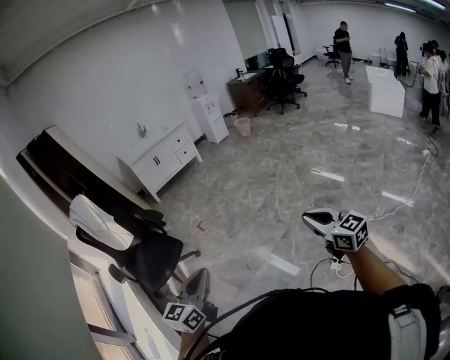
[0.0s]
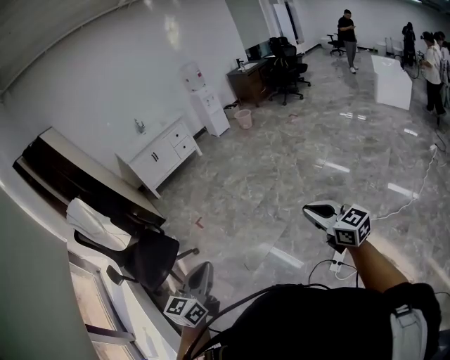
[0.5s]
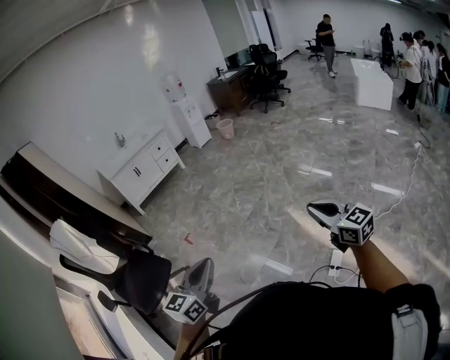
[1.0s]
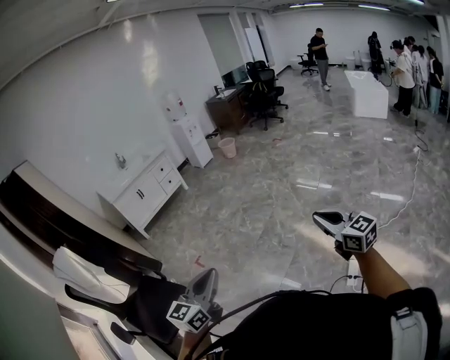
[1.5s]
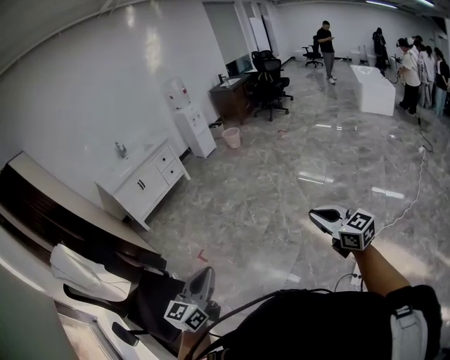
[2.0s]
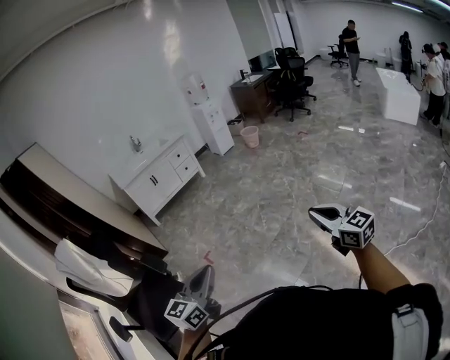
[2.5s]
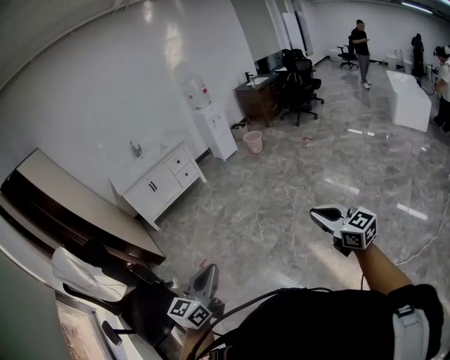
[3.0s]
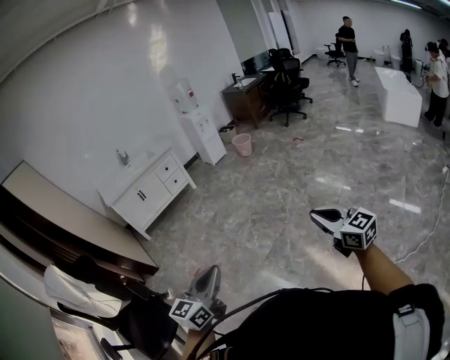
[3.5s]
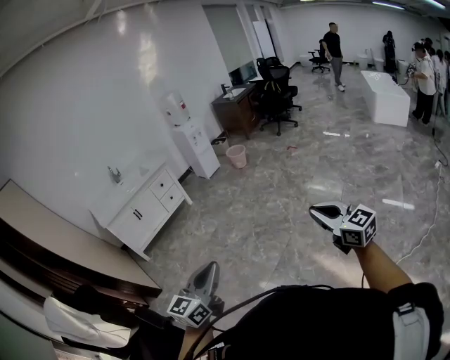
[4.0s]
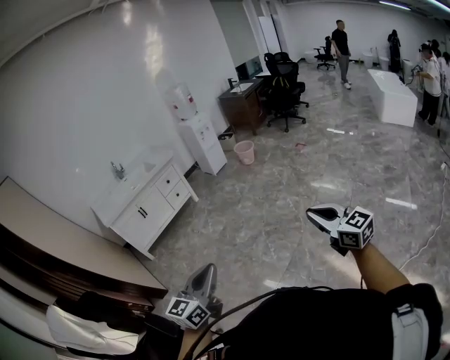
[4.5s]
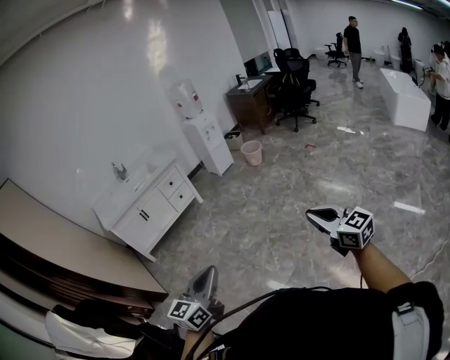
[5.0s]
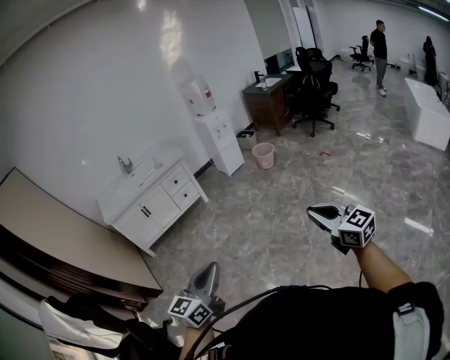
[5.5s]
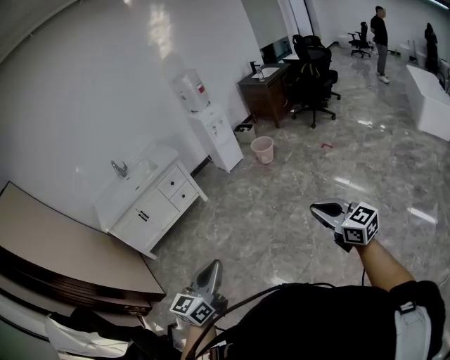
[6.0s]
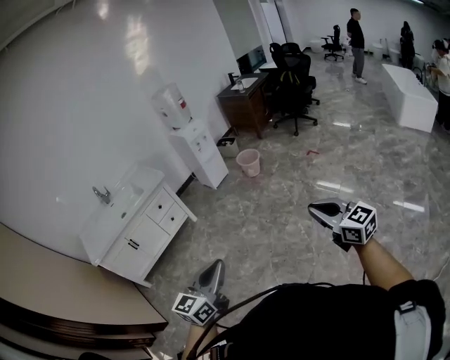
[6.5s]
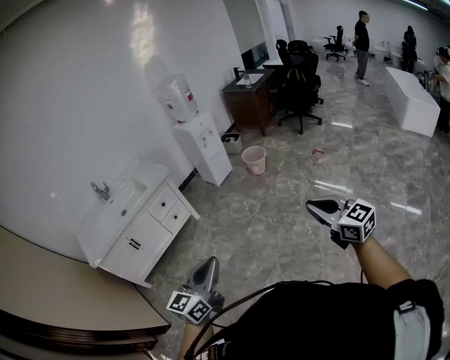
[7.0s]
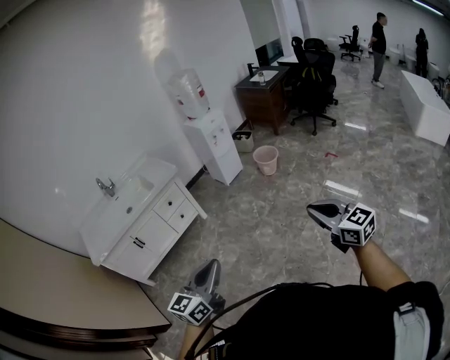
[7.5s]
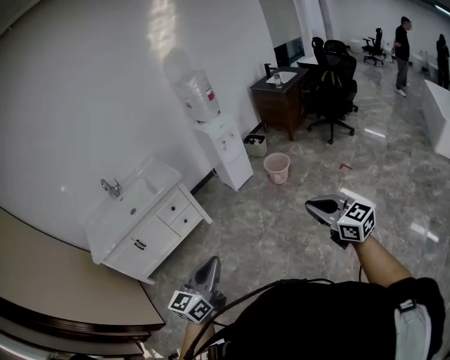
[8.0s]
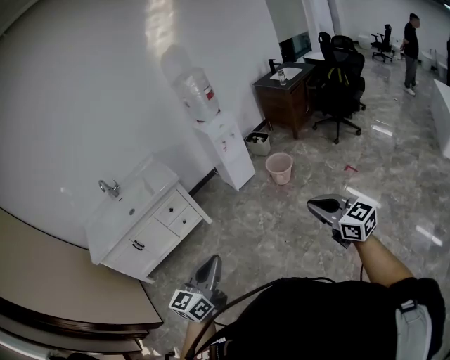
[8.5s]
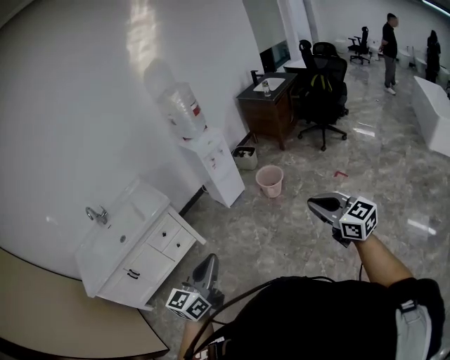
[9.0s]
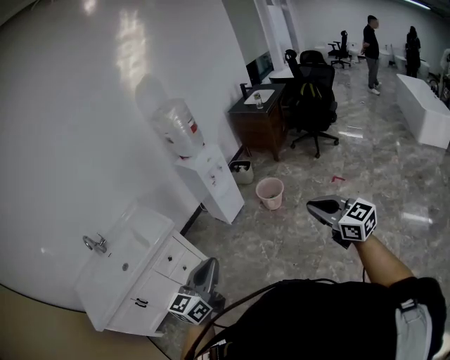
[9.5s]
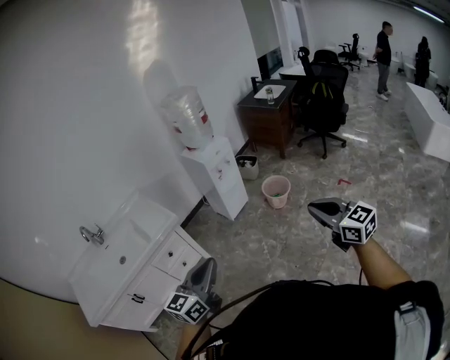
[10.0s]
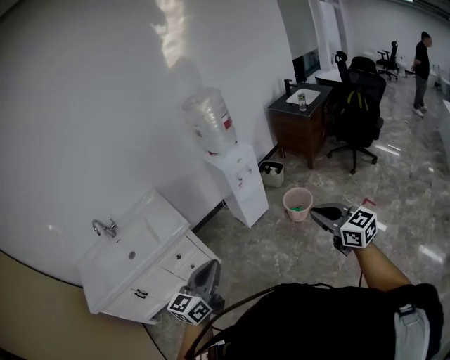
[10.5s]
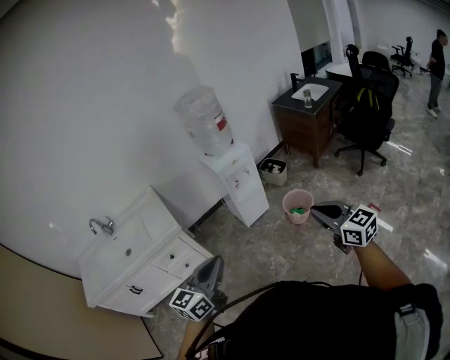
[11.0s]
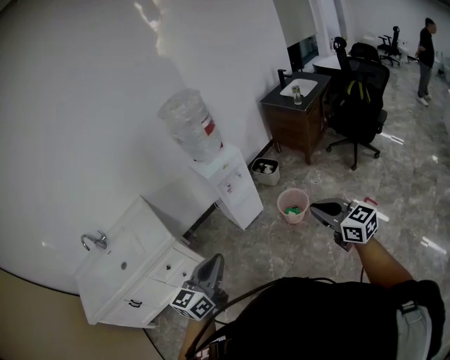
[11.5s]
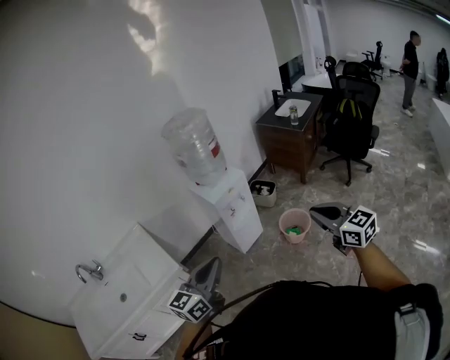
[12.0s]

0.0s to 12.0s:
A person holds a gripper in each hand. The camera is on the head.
0.0s to 2.0s: Both grippers move forward, approximately 35 cm.
2.0s to 4.0s: The grippers both shift forward by about 40 cm.
4.0s to 6.0s: The pair of grippers is taken forward, about 40 cm.
6.0s to 8.0s: The pair of grippers is taken forward, roughly 40 cm.
8.0s to 10.0s: Both grippers move forward, roughly 30 cm.
10.0s to 12.0s: The grippers both shift forward by roughly 35 cm.

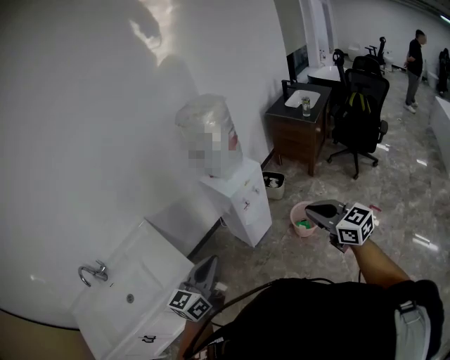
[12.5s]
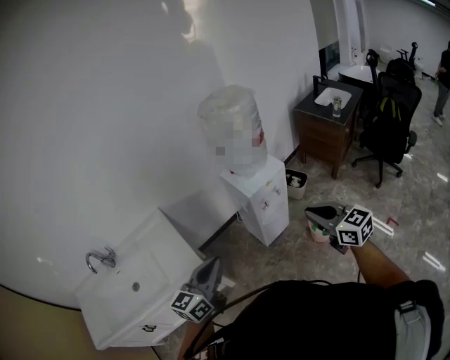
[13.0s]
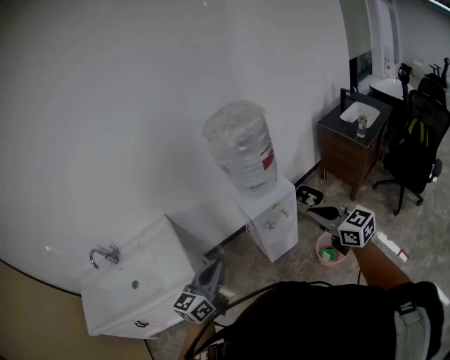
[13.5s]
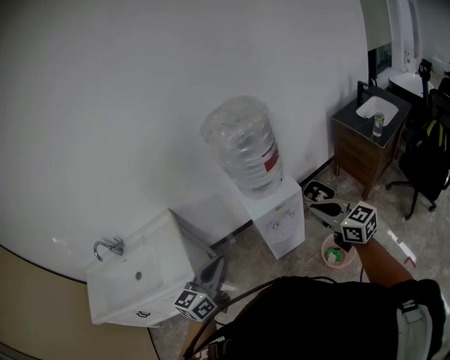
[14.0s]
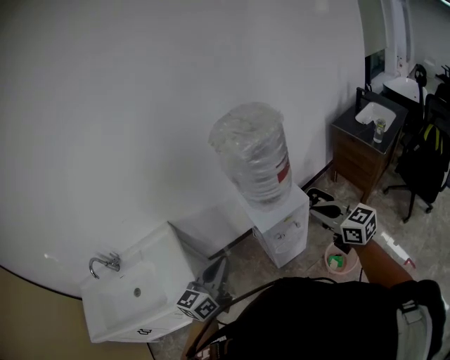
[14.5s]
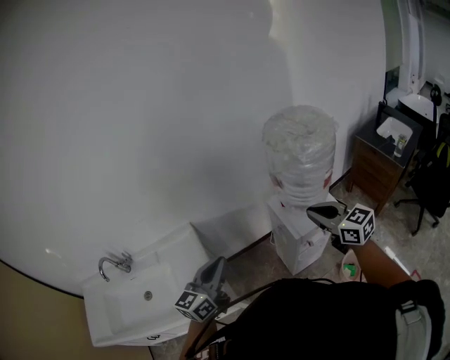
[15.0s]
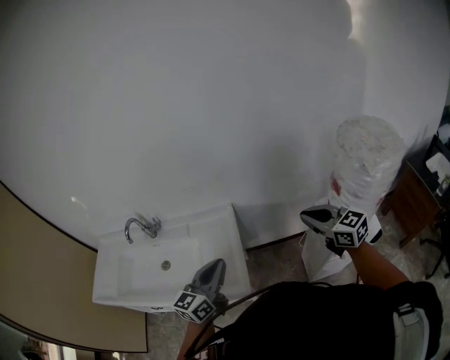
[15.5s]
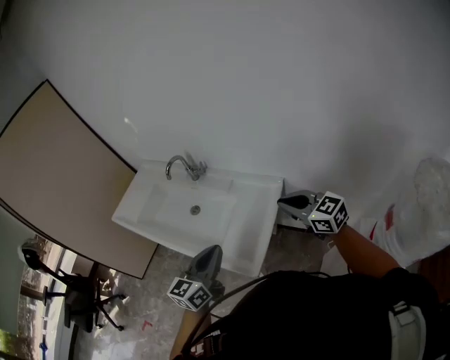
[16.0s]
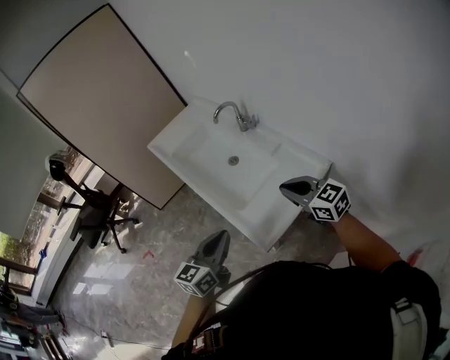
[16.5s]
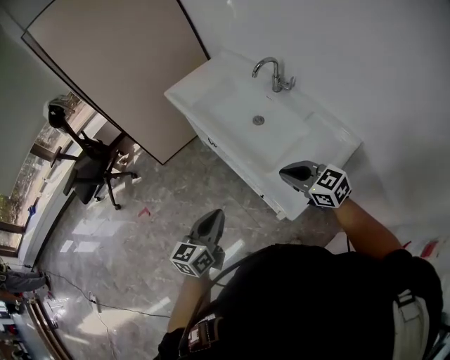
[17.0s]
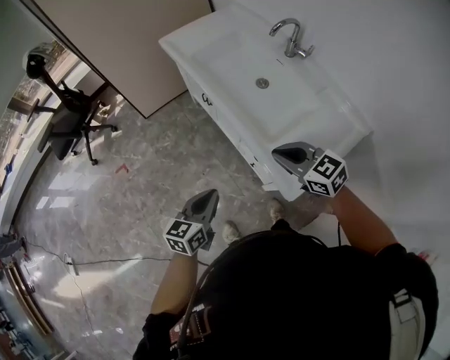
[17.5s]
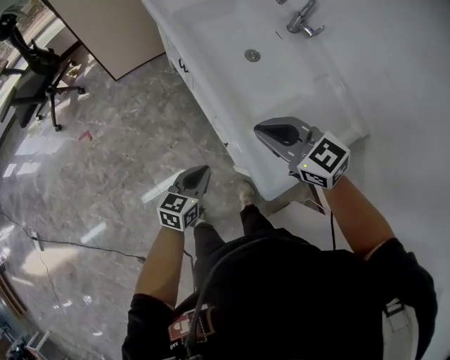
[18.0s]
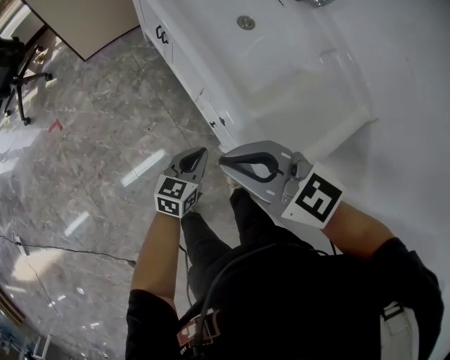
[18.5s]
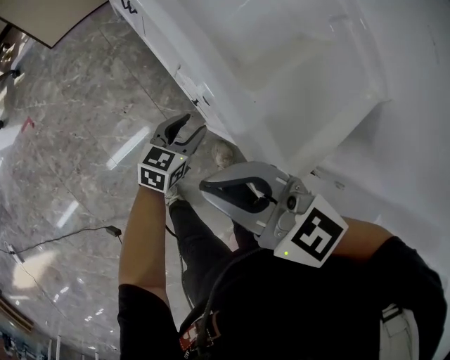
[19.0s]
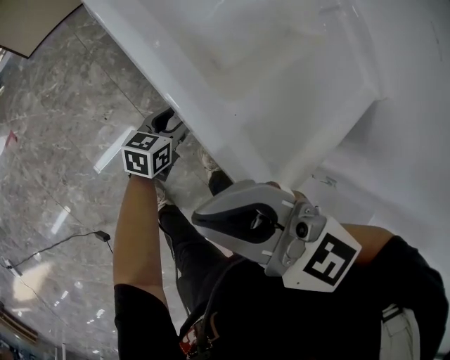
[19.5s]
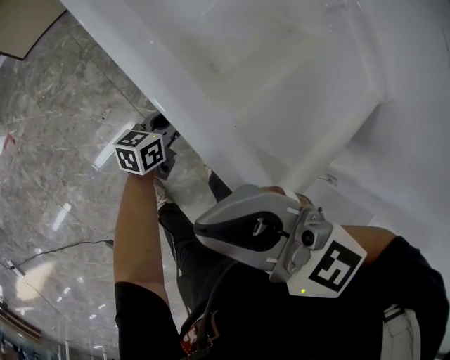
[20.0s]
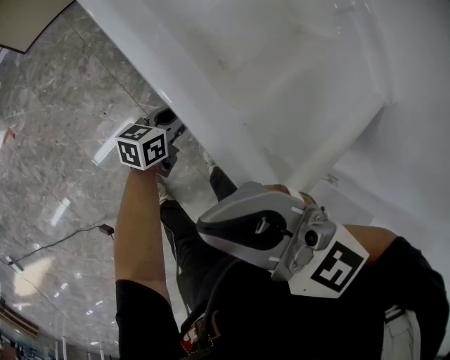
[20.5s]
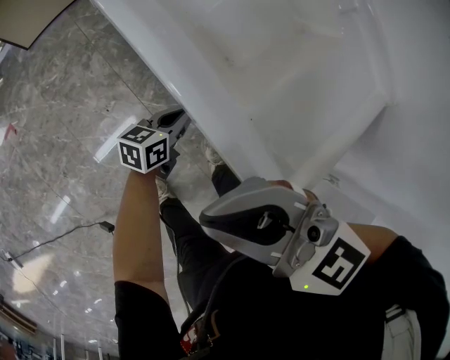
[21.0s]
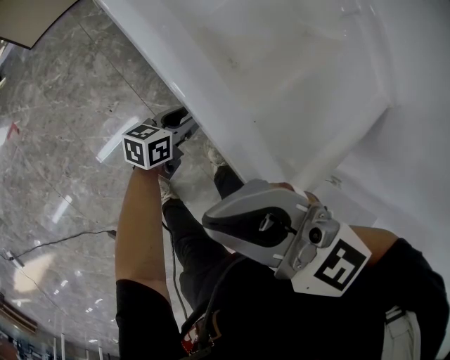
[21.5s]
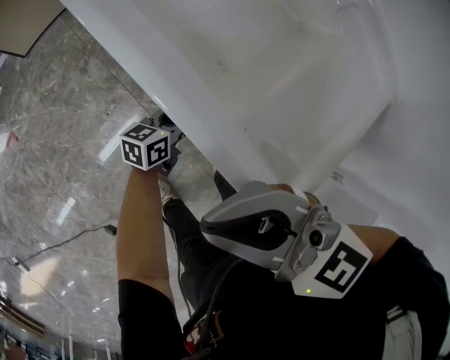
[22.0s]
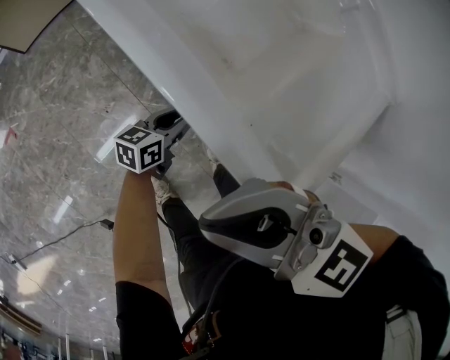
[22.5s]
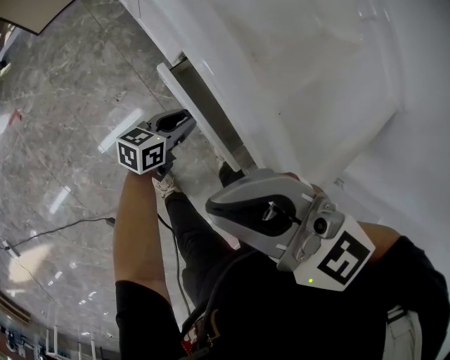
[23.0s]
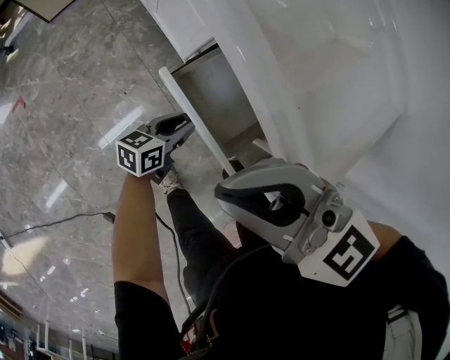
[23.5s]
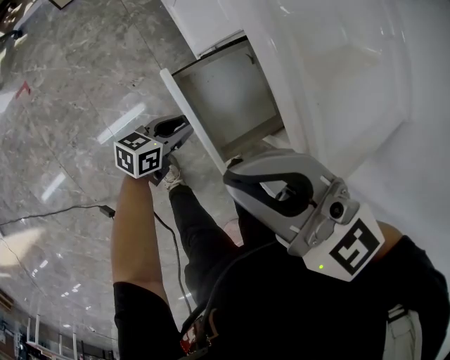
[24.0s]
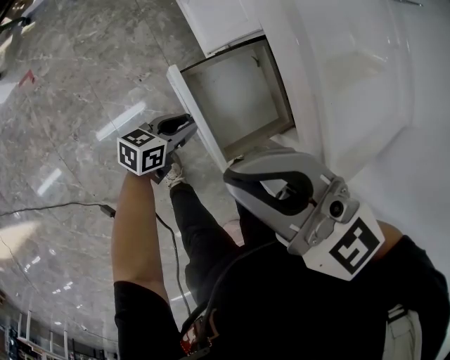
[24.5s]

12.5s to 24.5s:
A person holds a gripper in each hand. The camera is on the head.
12.5s to 14.5s: Both grippers move forward, roughly 30 cm. The right gripper rotates approximately 20 degrees.
14.5s to 16.5s: The left gripper ends up approximately 40 cm from where it was, and changes its angle by roughly 70 degrees. Meanwhile the right gripper shifts by some 70 cm, and turns by about 80 degrees.
16.5s to 18.5s: The right gripper shifts about 35 cm to the left and downward, and rotates some 30 degrees; the left gripper travels downward by roughly 40 cm.
18.5s to 20.5s: The right gripper travels downward by about 5 cm, while the left gripper goes approximately 20 cm downward, to the right and forward, rotates roughly 20 degrees, and opens.
20.5s to 22.5s: The left gripper closes and opens again.
22.5s to 24.5s: The left gripper ends up some 20 cm from where it was. Meanwhile the right gripper moves some 15 cm.

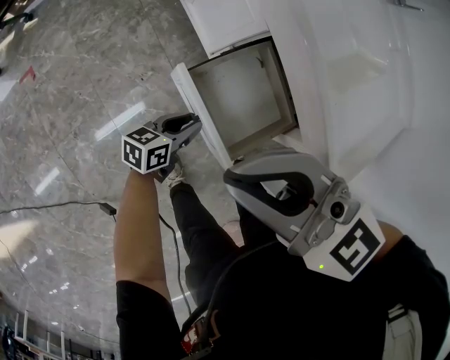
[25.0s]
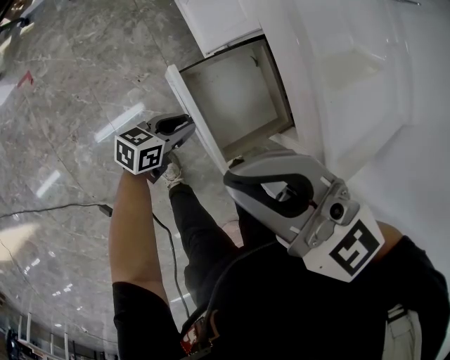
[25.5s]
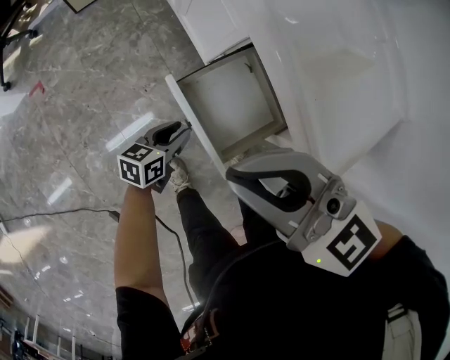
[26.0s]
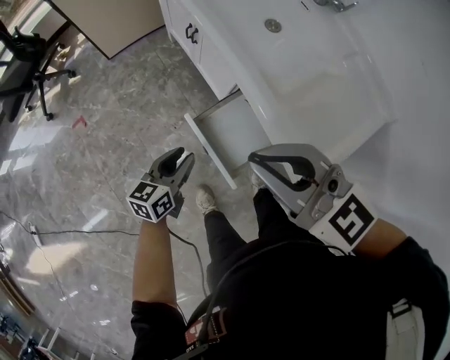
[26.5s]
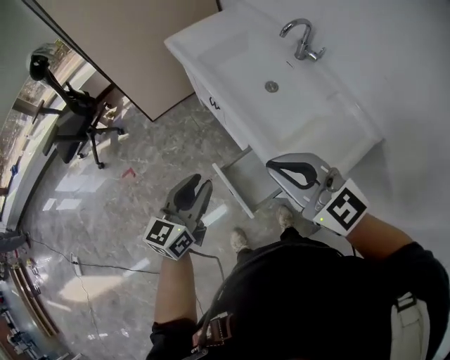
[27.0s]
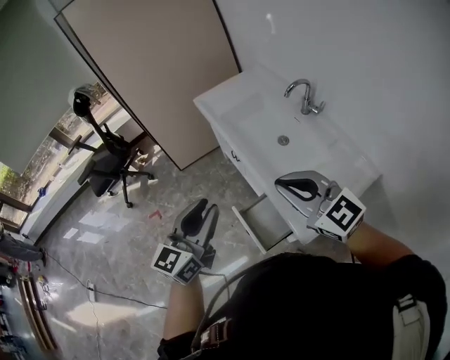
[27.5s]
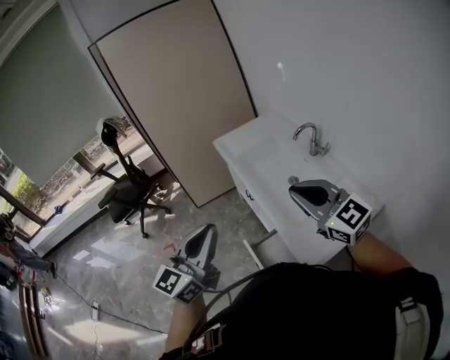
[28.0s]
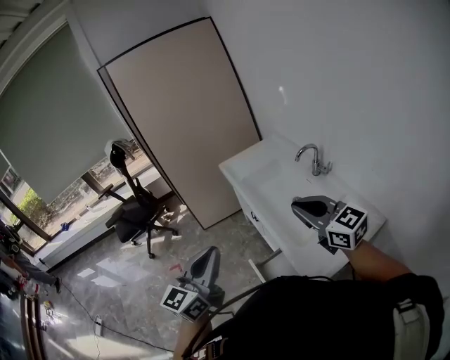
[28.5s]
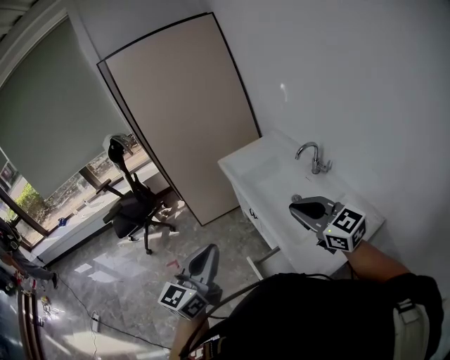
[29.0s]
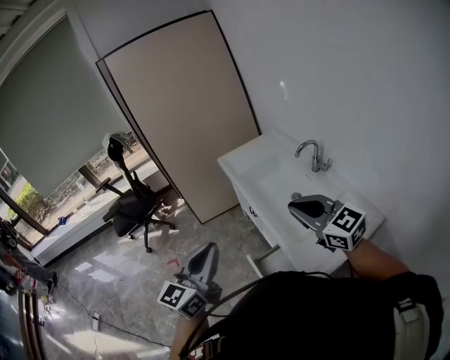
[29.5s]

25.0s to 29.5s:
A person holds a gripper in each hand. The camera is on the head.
25.0s to 27.0s: The right gripper moves upward, some 25 cm, while the left gripper shifts some 50 cm upward, and rotates some 40 degrees.
27.0s to 29.5s: The left gripper is displaced upward by roughly 25 cm, rotates some 20 degrees, and closes up; the right gripper shifts some 15 cm upward and to the right.
